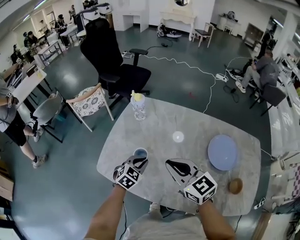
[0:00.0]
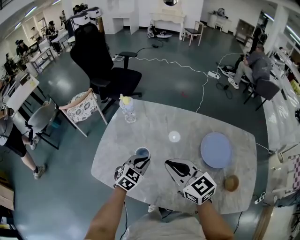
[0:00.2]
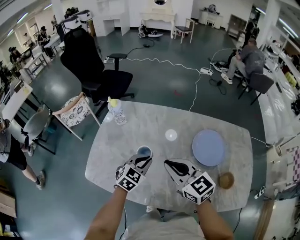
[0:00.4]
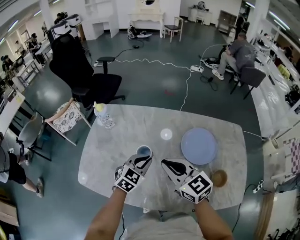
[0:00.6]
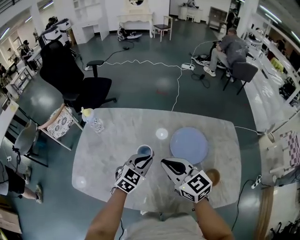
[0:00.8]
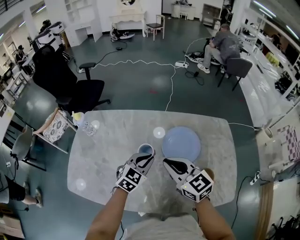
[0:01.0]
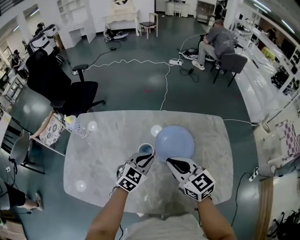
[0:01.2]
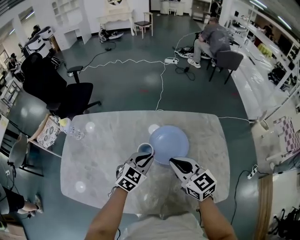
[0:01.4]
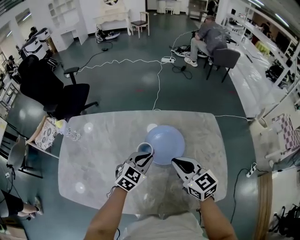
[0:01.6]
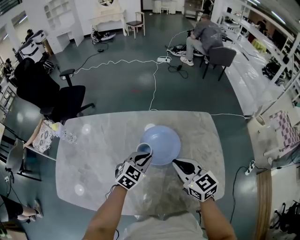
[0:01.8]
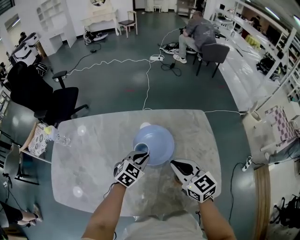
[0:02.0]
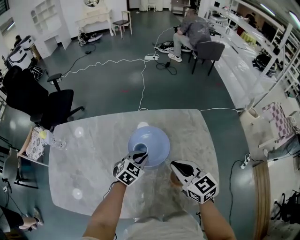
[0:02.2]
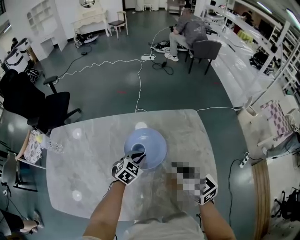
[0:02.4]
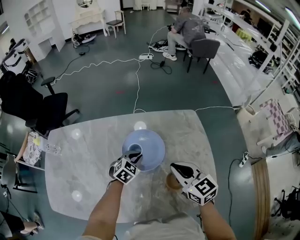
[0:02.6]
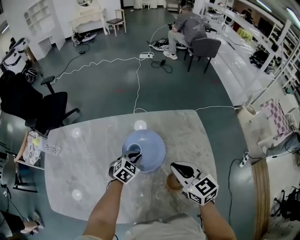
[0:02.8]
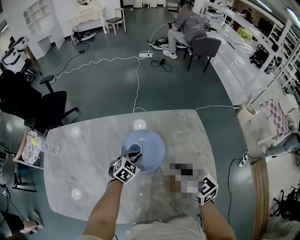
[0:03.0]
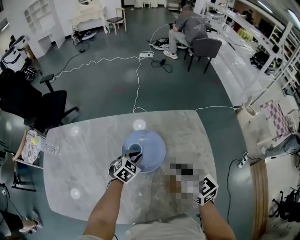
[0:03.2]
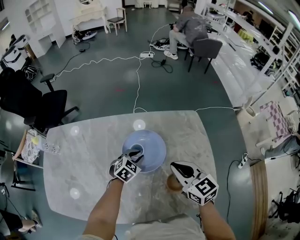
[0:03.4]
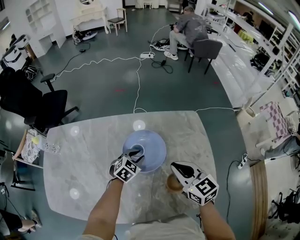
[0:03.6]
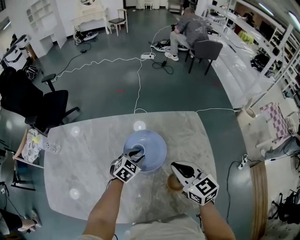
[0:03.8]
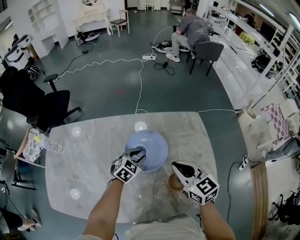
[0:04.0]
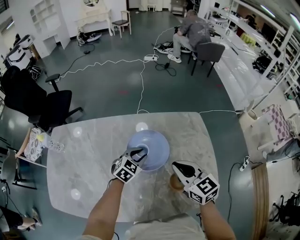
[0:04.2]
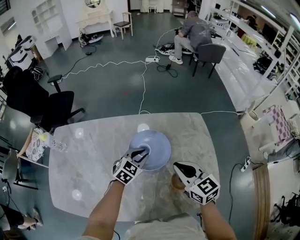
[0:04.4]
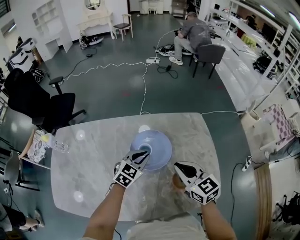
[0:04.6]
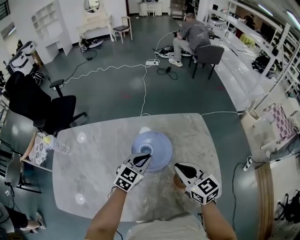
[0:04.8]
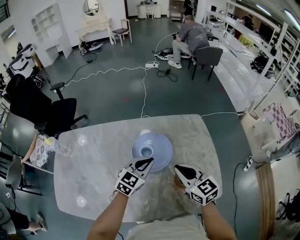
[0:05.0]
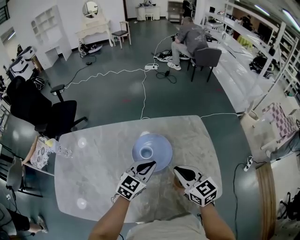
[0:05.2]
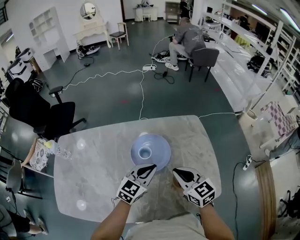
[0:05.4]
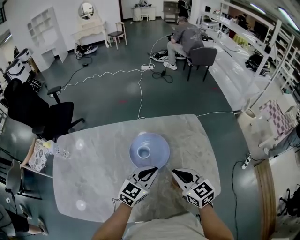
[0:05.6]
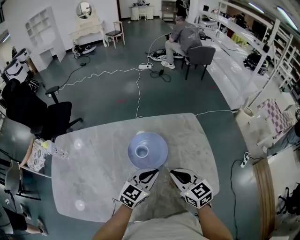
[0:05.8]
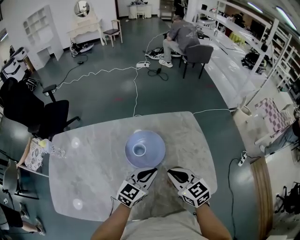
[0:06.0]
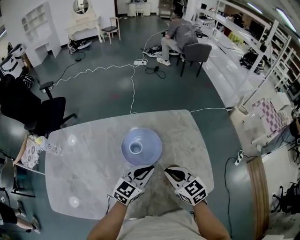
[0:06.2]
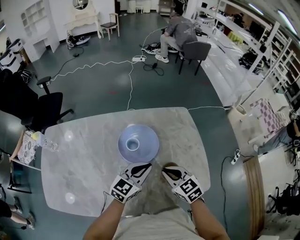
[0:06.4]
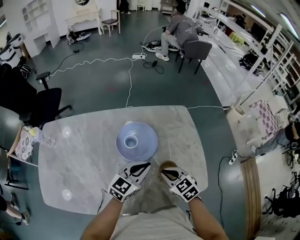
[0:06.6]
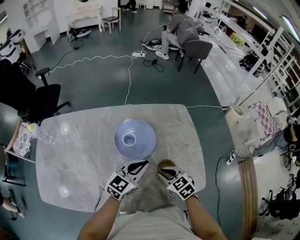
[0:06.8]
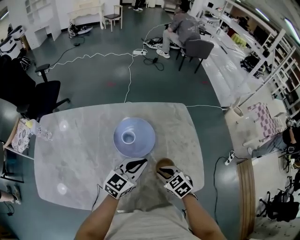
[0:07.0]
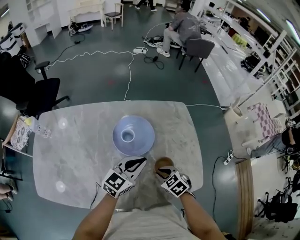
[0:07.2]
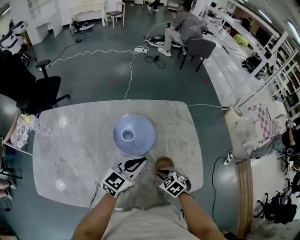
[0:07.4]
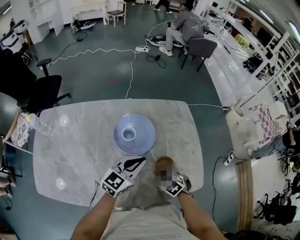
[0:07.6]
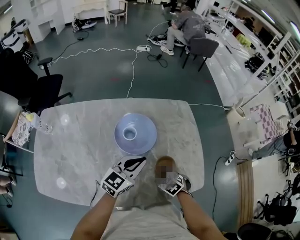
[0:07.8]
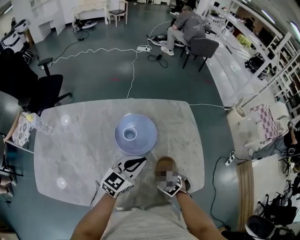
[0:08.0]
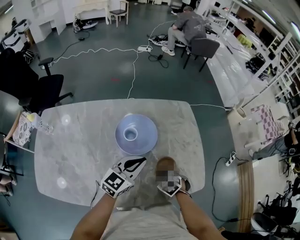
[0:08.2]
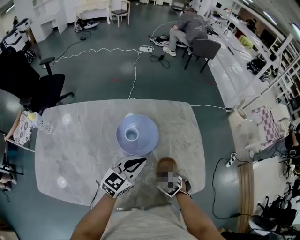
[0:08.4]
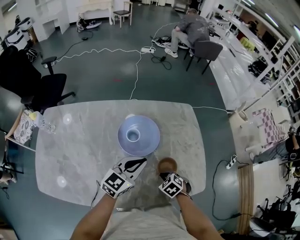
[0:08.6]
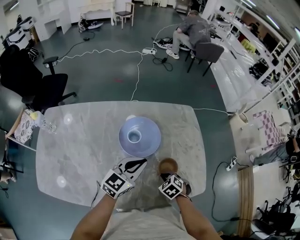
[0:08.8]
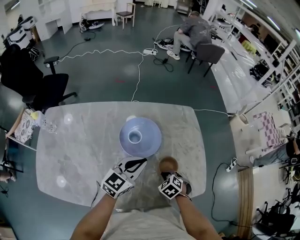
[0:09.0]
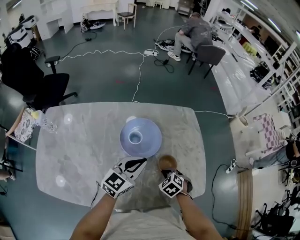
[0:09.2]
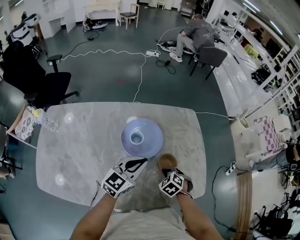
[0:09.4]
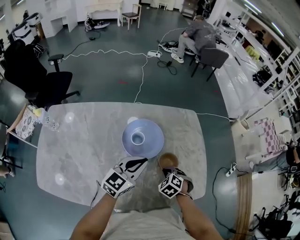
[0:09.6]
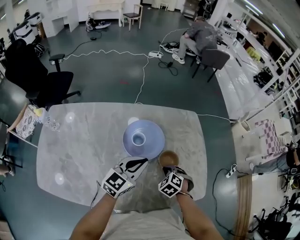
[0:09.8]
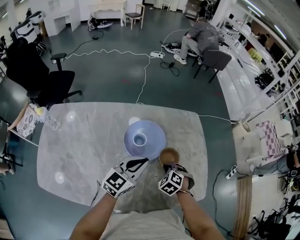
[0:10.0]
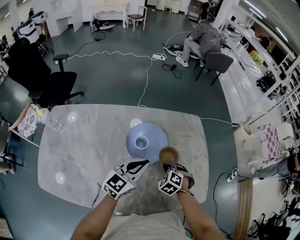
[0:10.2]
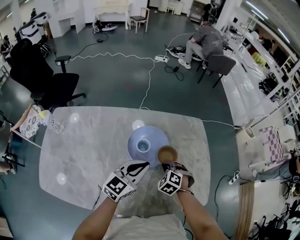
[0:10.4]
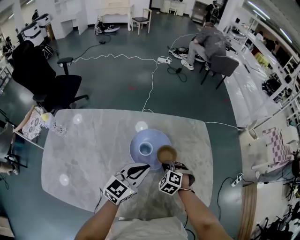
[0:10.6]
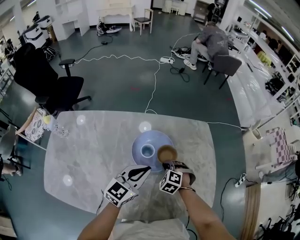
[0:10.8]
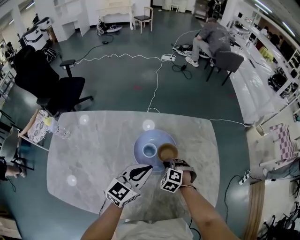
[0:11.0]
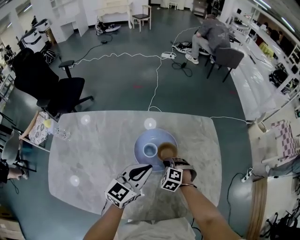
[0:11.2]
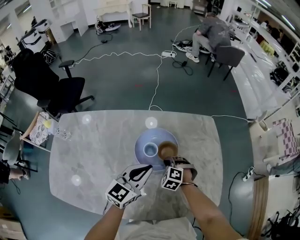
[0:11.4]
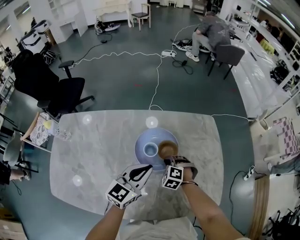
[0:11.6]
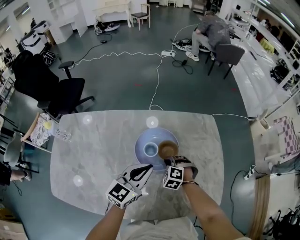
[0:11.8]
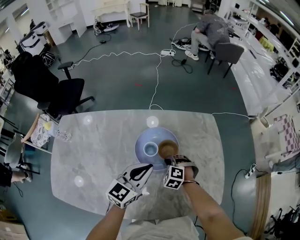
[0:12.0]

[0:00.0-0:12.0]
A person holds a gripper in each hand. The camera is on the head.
0:00.0 to 0:01.6: The two grippers travel together, to the right, some 40 cm. The right gripper rotates roughly 30 degrees. Meanwhile the left gripper swivels approximately 20 degrees.
0:01.6 to 0:03.0: The left gripper goes about 15 cm downward, forward and to the right; the right gripper moves to the right, roughly 10 cm.
0:03.0 to 0:04.4: The left gripper is displaced upward by approximately 5 cm.
0:04.4 to 0:06.0: The left gripper moves backward, upward and to the right, about 15 cm, and rotates some 20 degrees. Meanwhile the right gripper is displaced backward by about 5 cm.
0:06.0 to 0:07.6: The right gripper is displaced downward by about 20 cm, and points its fingers roughly 40 degrees further downward.
0:07.6 to 0:09.0: The grippers make only small movements.
0:09.0 to 0:10.4: The right gripper is displaced forward and to the left by some 10 cm, and rotates roughly 20 degrees.
0:10.4 to 0:12.0: The right gripper shifts by some 5 cm.

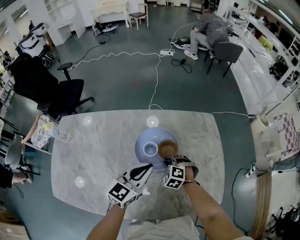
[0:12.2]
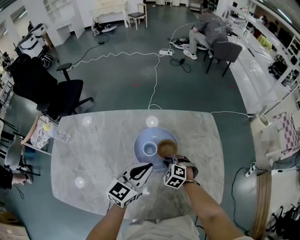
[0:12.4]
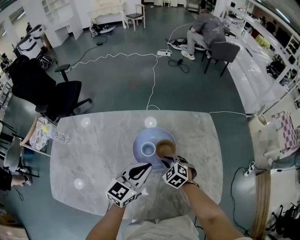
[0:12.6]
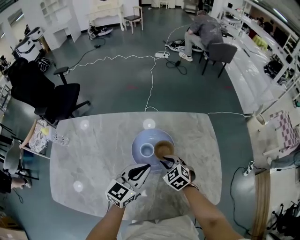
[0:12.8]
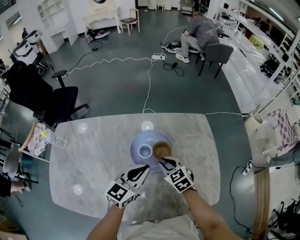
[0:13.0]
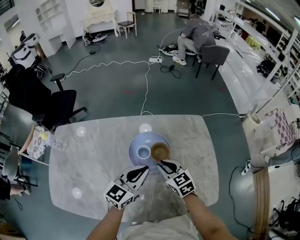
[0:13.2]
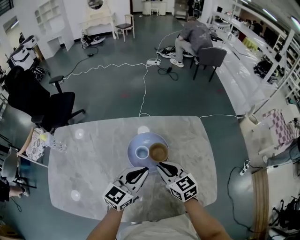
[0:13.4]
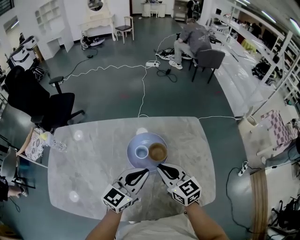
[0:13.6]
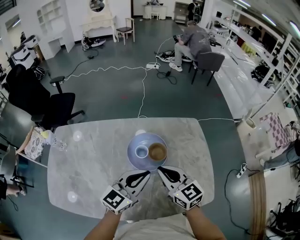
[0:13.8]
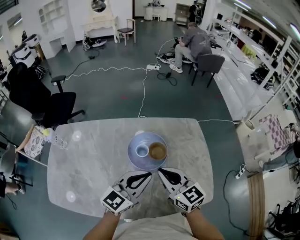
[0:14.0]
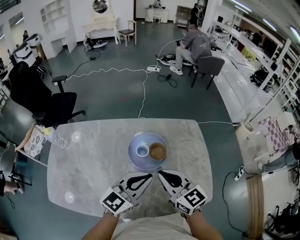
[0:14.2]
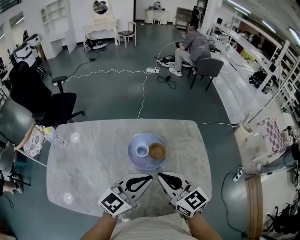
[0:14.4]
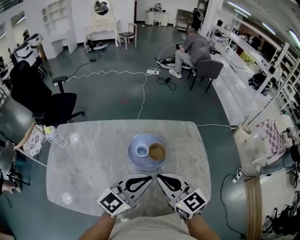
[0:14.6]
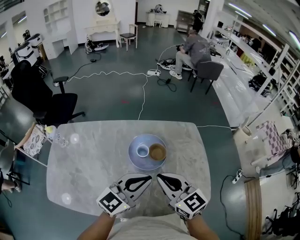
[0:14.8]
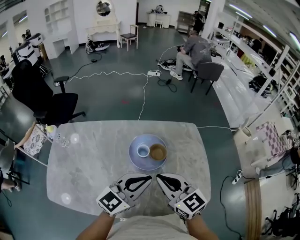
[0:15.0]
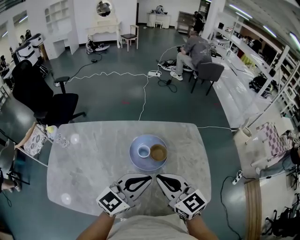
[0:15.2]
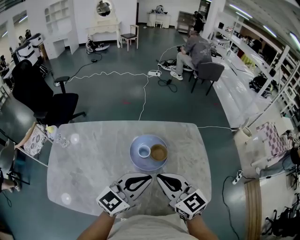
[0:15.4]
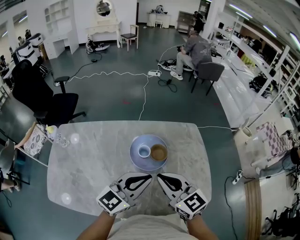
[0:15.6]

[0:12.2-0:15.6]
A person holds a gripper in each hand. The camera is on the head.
0:12.2 to 0:13.8: The left gripper shifts about 10 cm upward and backward; the right gripper is displaced upward by about 25 cm, and tips its fingers upward by approximately 50 degrees.
0:13.8 to 0:15.6: Both grippers move upward and backward, some 10 cm.

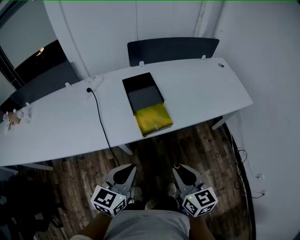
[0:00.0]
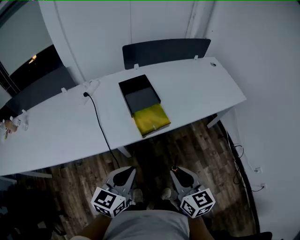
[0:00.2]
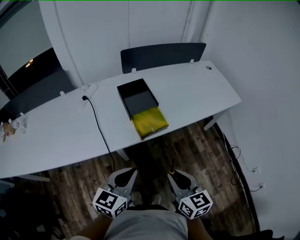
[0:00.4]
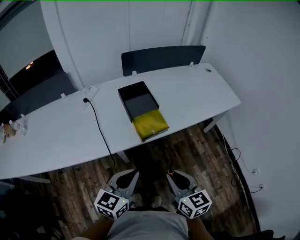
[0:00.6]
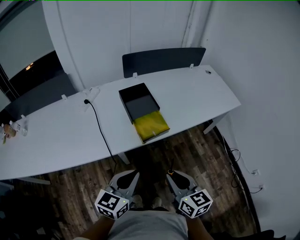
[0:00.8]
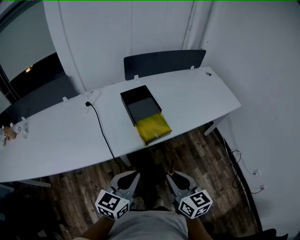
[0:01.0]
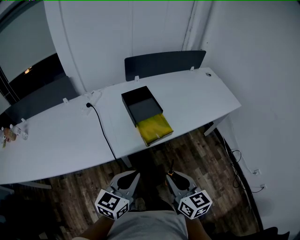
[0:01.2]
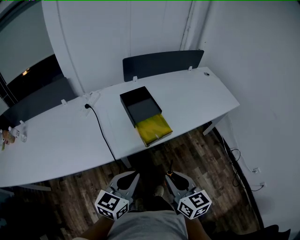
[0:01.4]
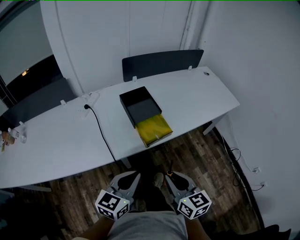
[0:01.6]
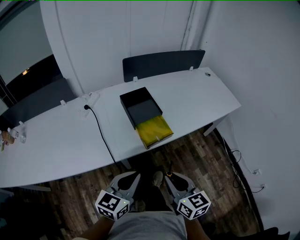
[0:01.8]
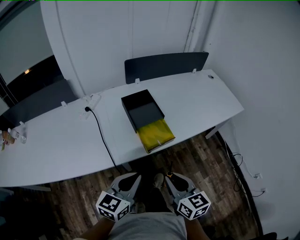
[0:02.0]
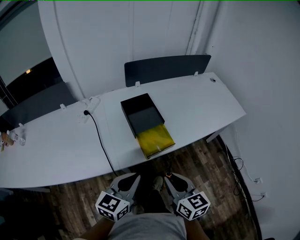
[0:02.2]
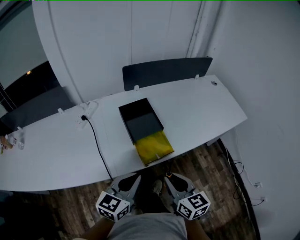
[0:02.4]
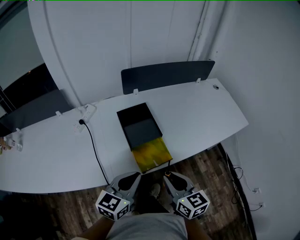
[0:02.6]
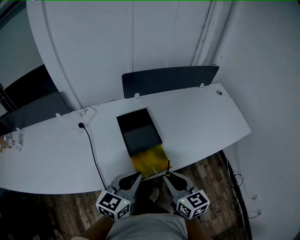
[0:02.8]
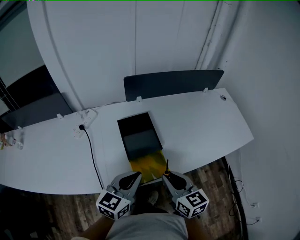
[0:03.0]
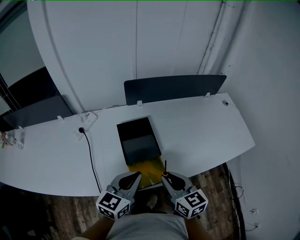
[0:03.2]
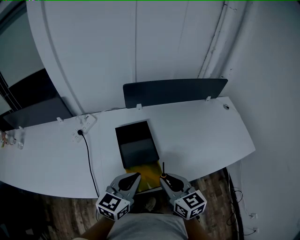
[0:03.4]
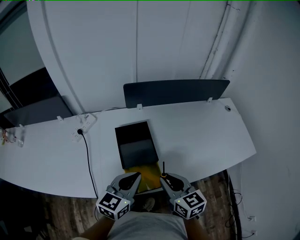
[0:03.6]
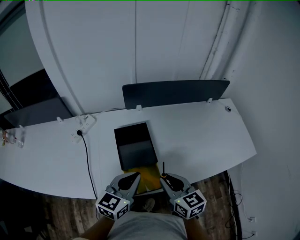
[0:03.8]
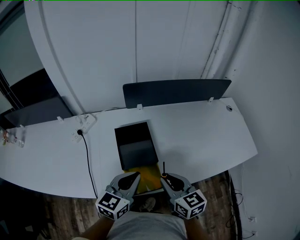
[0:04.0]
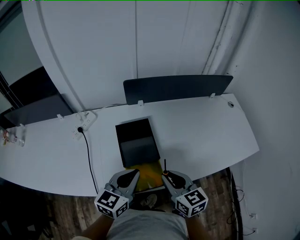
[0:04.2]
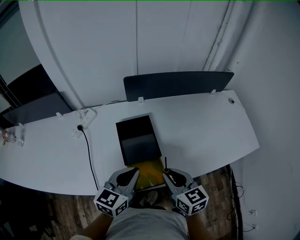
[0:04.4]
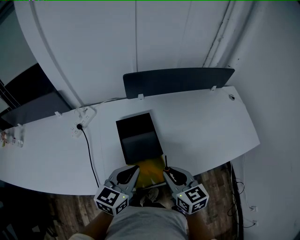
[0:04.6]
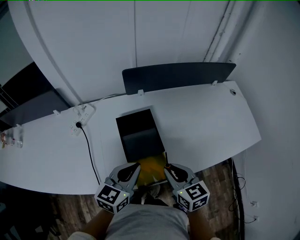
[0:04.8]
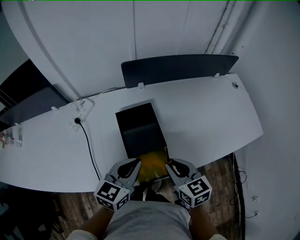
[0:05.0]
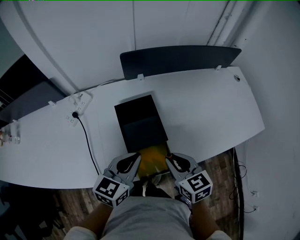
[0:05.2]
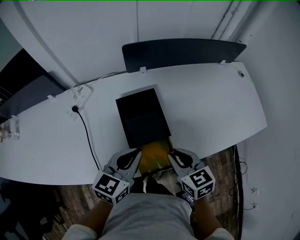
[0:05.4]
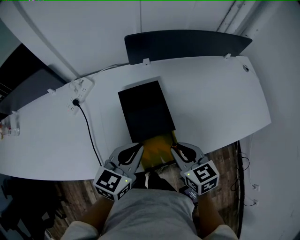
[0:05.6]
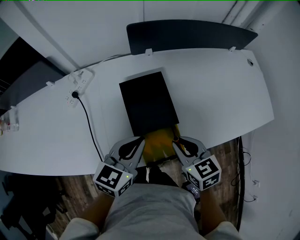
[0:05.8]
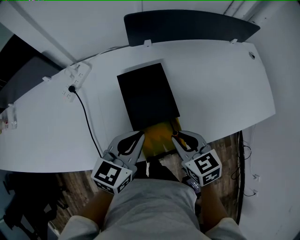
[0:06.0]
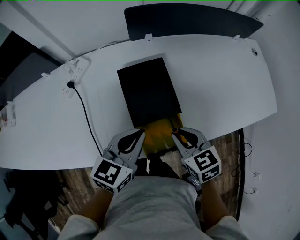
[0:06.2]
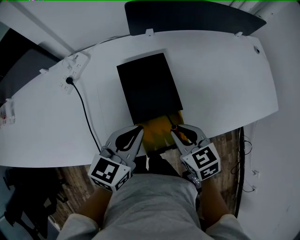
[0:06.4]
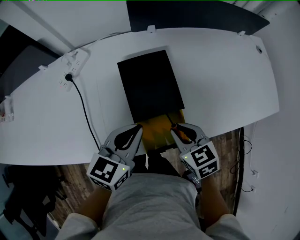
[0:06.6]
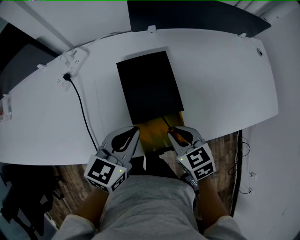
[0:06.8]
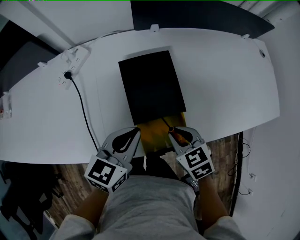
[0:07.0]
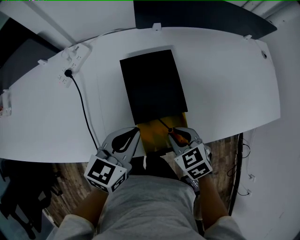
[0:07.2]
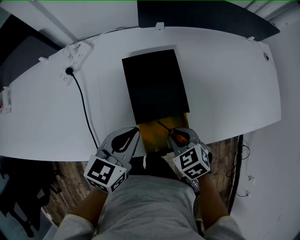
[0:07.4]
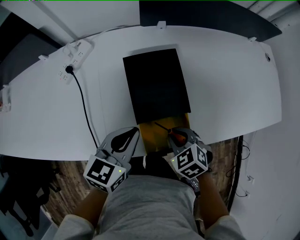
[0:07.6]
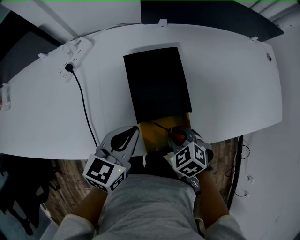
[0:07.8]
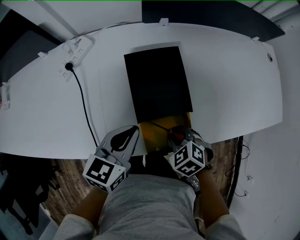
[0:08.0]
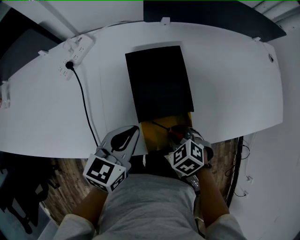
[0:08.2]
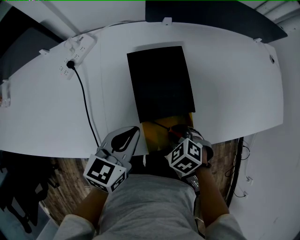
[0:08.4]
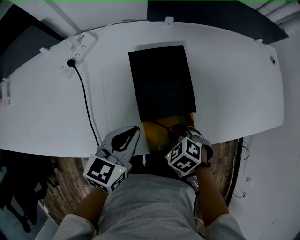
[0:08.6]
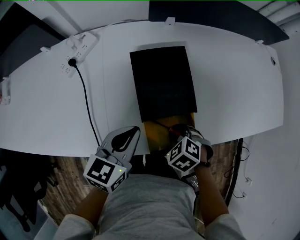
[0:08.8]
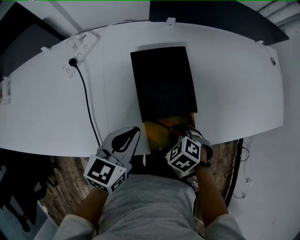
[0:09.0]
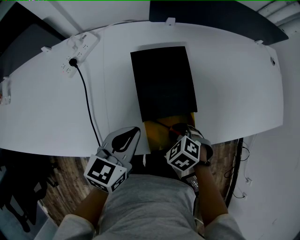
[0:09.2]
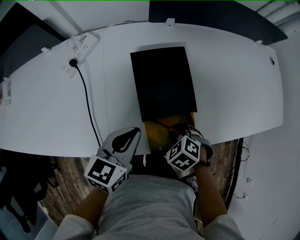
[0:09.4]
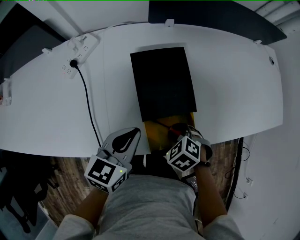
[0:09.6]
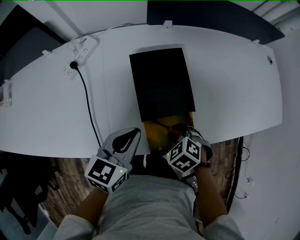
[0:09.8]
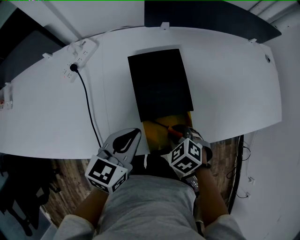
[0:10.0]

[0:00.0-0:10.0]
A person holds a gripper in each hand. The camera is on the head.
0:00.0 to 0:01.4: The right gripper goes about 10 cm to the left. Meanwhile the left gripper ends up approximately 5 cm from where it was.
0:01.4 to 0:02.8: The two grippers go some 20 cm forward.
0:02.8 to 0:04.2: The grippers both shift forward by roughly 10 cm.
0:04.2 to 0:05.8: The two grippers go roughly 5 cm downward.
0:05.8 to 0:07.2: The left gripper shifts by some 5 cm. Meanwhile the right gripper shifts some 10 cm downward, and swivels roughly 20 degrees.
0:07.2 to 0:08.6: The right gripper moves downward, roughly 5 cm, and swivels approximately 30 degrees.
0:08.6 to 0:10.0: The grippers make only small movements.
